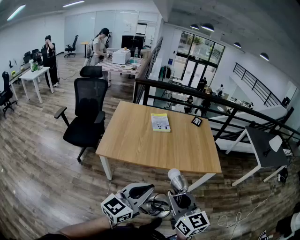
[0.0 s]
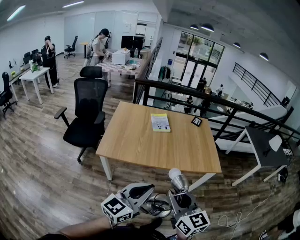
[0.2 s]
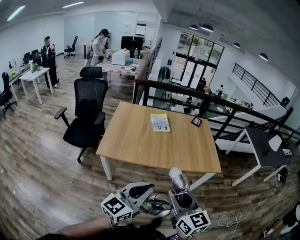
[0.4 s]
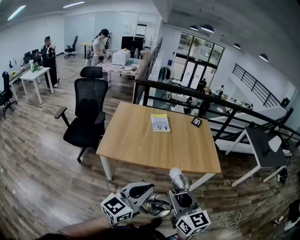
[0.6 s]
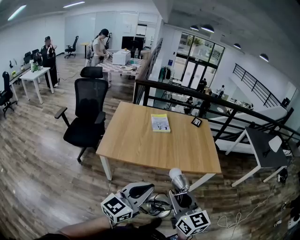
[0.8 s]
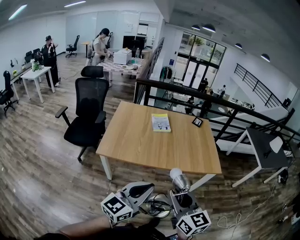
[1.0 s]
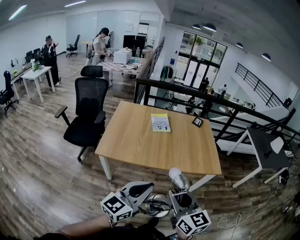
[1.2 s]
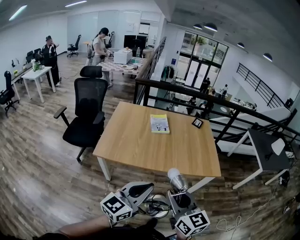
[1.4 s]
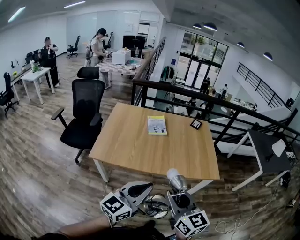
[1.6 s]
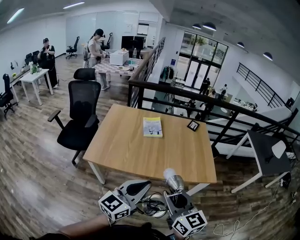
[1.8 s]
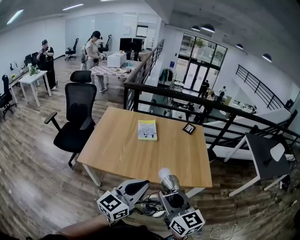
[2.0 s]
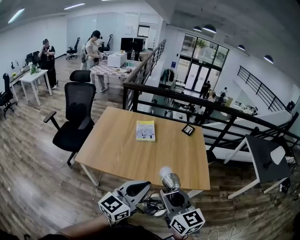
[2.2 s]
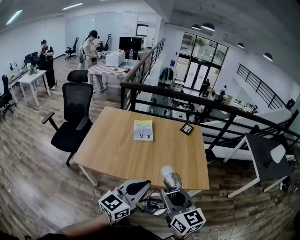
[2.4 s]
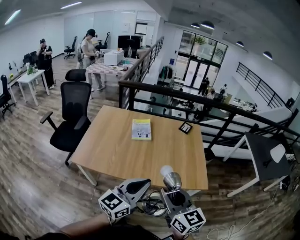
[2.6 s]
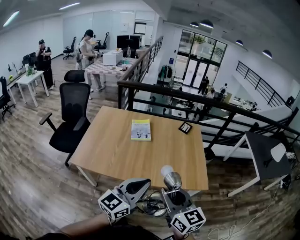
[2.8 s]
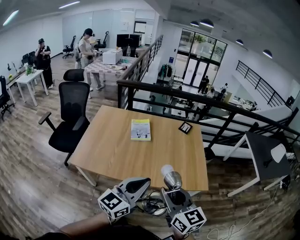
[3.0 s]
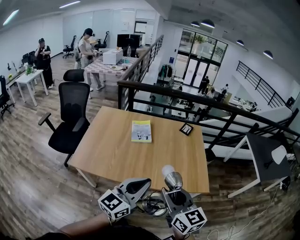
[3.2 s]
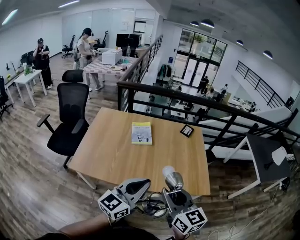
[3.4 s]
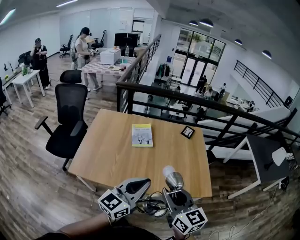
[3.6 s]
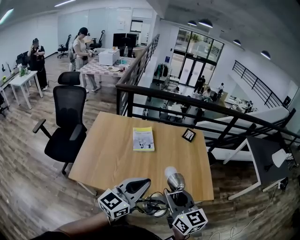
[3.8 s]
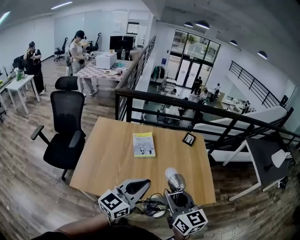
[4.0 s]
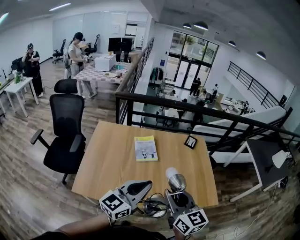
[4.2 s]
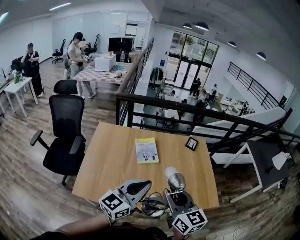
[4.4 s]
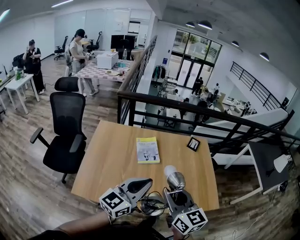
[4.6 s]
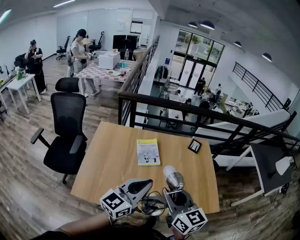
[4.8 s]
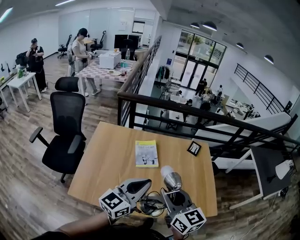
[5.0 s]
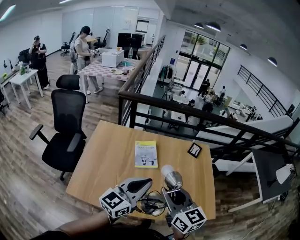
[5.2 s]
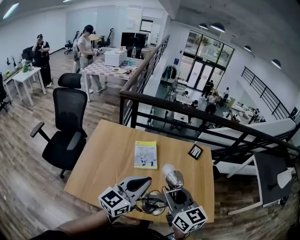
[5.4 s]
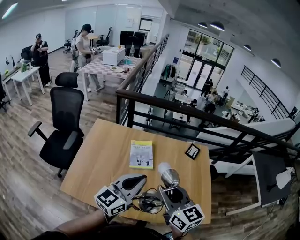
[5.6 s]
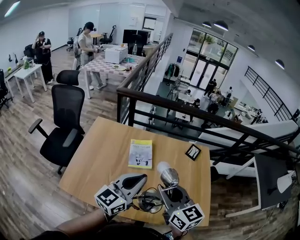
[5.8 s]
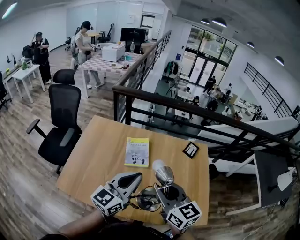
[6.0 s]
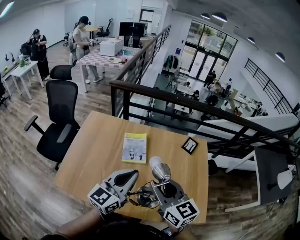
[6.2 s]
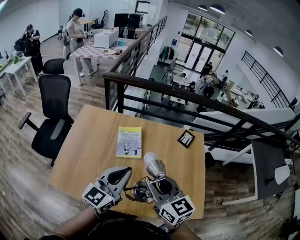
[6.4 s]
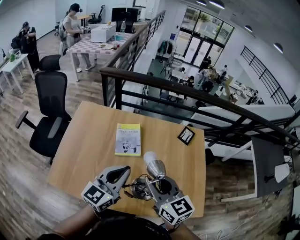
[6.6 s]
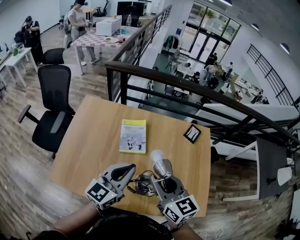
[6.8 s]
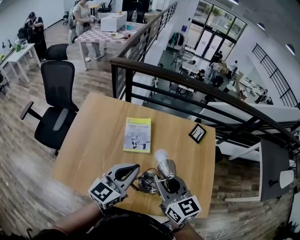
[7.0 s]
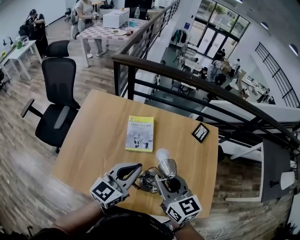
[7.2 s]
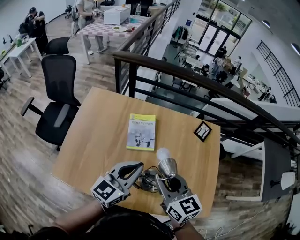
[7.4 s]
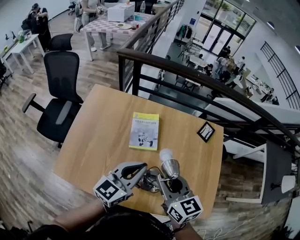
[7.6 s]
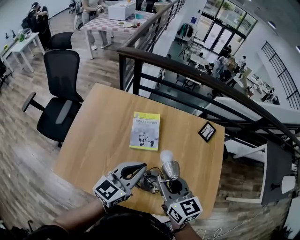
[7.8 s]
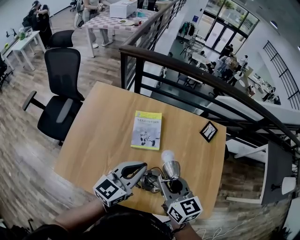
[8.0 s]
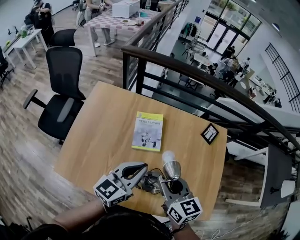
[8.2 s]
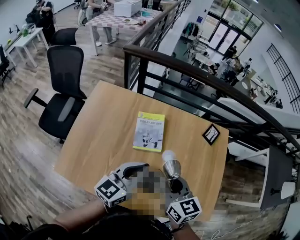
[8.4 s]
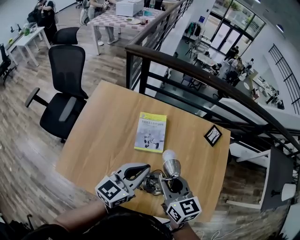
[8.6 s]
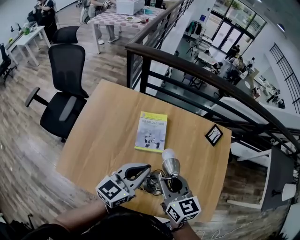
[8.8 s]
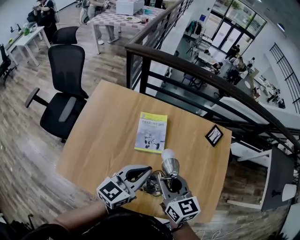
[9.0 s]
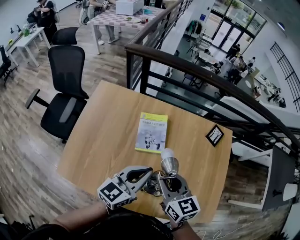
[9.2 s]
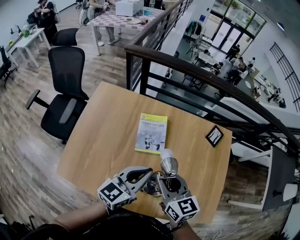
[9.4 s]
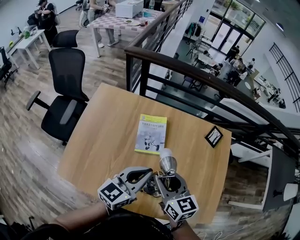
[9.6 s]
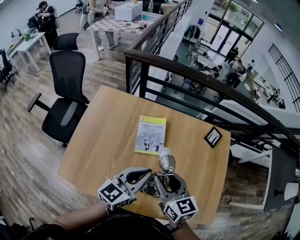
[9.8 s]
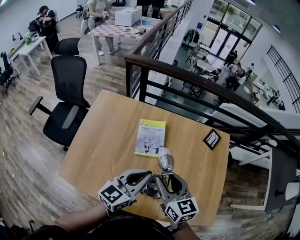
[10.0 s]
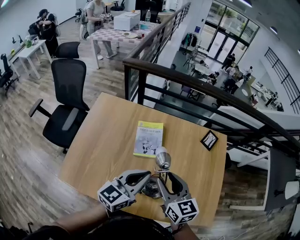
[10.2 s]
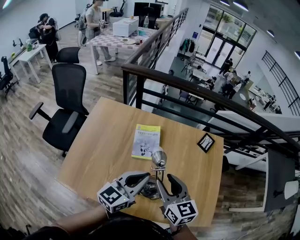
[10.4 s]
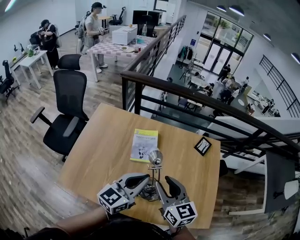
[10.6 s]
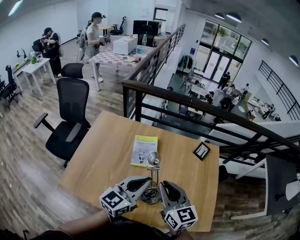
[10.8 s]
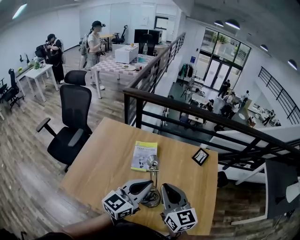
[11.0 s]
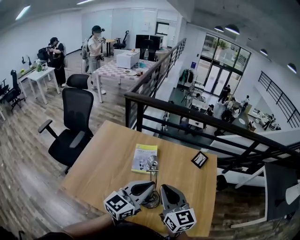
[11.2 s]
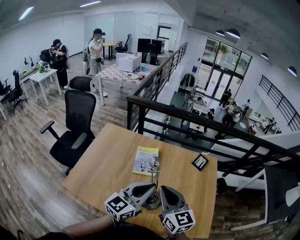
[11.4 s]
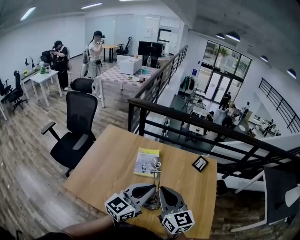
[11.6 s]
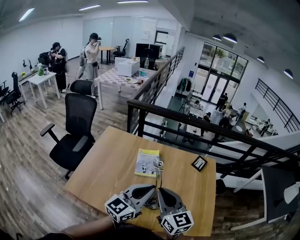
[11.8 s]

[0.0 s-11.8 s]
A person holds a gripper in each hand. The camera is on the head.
0.0 to 1.4 s: The right gripper changes place by roughly 5 cm, while the left gripper shifts by about 5 cm.
1.4 to 3.0 s: Both grippers travel together forward and to the right, some 25 cm.
3.0 to 4.4 s: Both grippers move forward and to the left, some 25 cm.
4.4 to 6.0 s: The two grippers go some 15 cm forward and to the right.
6.0 to 7.4 s: The grippers both shift forward and downward by some 15 cm.
7.4 to 8.8 s: The right gripper moves about 5 cm.
8.8 to 10.4 s: The left gripper shifts by roughly 5 cm. Meanwhile the right gripper shifts by roughly 5 cm.
10.4 to 11.8 s: Both grippers travel together backward and upward, about 15 cm. The right gripper closes up.

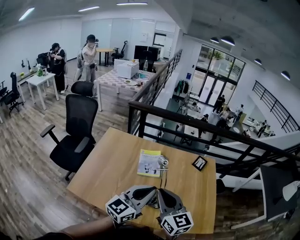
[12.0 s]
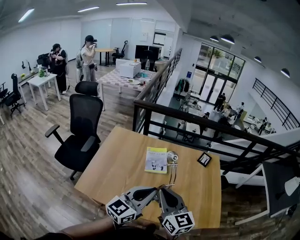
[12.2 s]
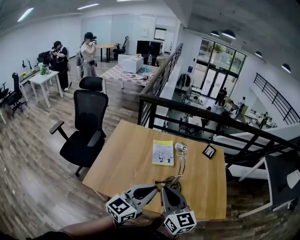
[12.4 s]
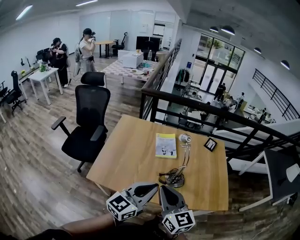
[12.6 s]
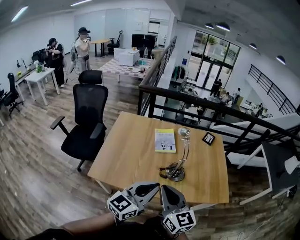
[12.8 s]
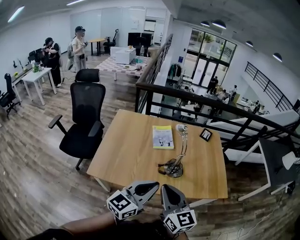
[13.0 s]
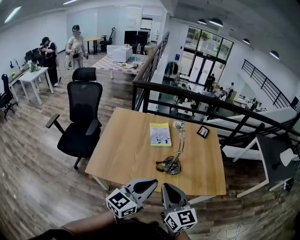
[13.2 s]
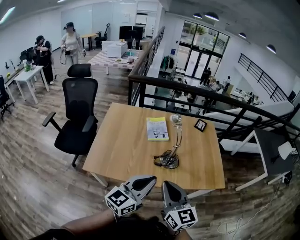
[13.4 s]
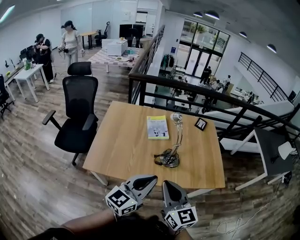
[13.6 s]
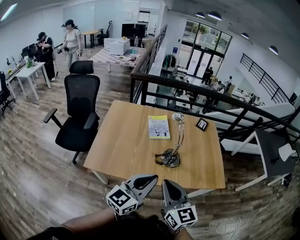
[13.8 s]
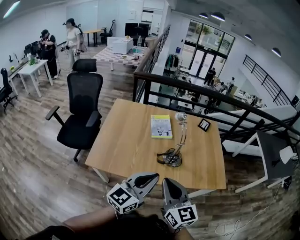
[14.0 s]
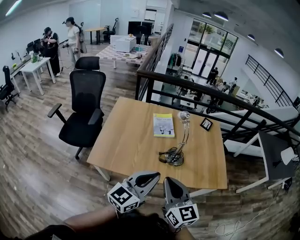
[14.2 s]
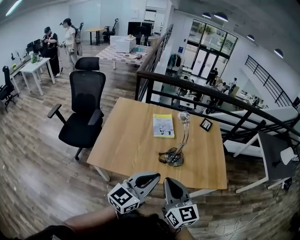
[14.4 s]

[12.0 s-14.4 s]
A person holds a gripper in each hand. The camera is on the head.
12.0 to 13.2 s: The right gripper is displaced backward by some 20 cm. The left gripper shifts approximately 25 cm backward and to the left.
13.2 to 14.4 s: The grippers make only small movements.

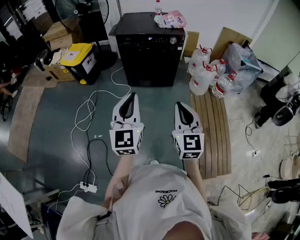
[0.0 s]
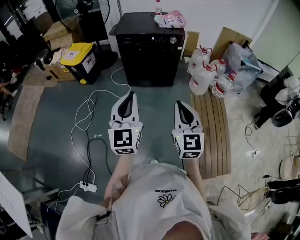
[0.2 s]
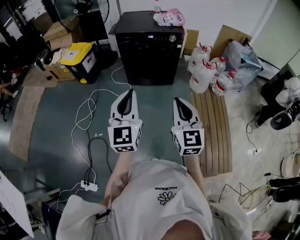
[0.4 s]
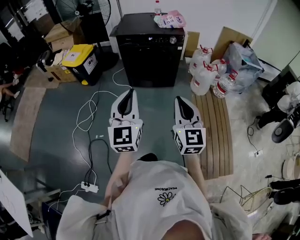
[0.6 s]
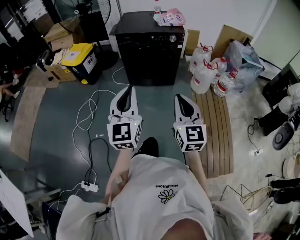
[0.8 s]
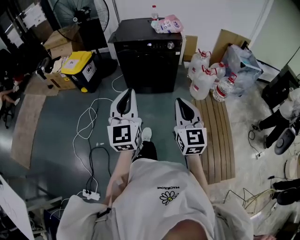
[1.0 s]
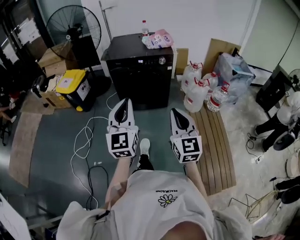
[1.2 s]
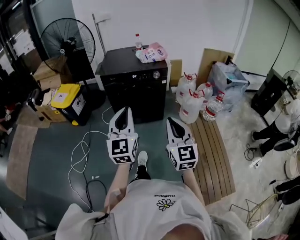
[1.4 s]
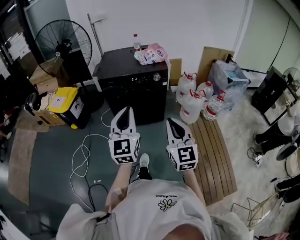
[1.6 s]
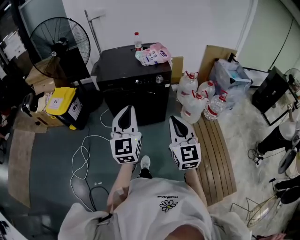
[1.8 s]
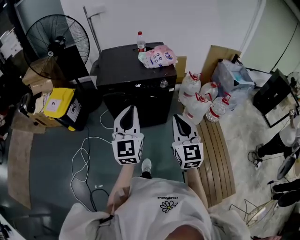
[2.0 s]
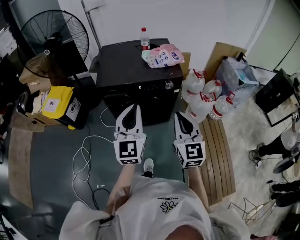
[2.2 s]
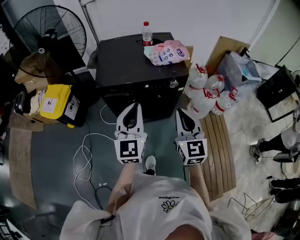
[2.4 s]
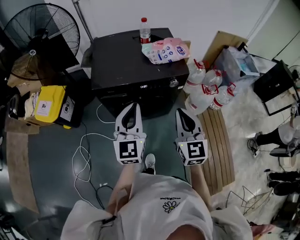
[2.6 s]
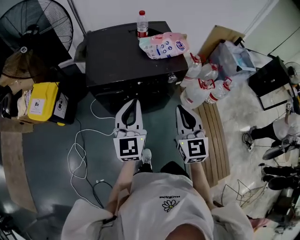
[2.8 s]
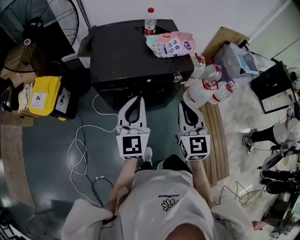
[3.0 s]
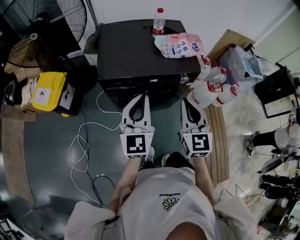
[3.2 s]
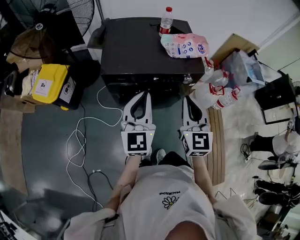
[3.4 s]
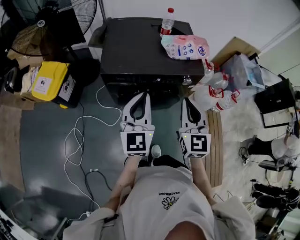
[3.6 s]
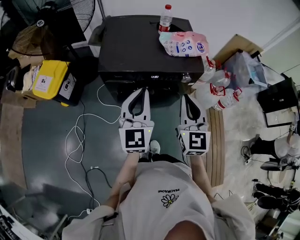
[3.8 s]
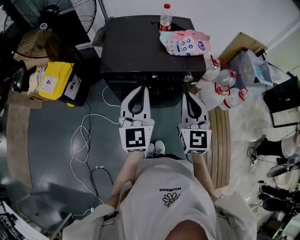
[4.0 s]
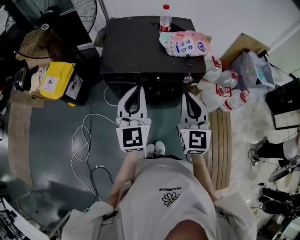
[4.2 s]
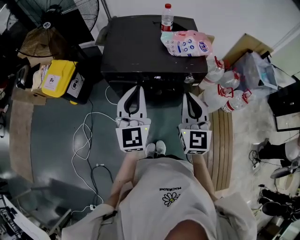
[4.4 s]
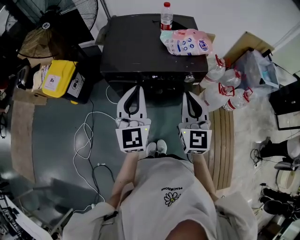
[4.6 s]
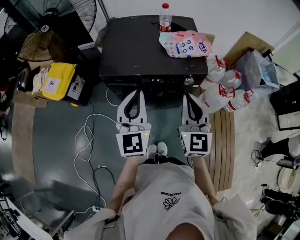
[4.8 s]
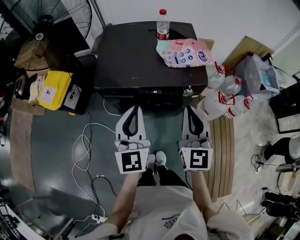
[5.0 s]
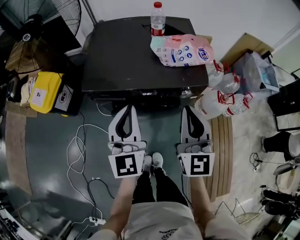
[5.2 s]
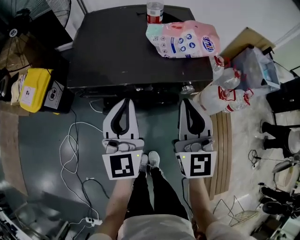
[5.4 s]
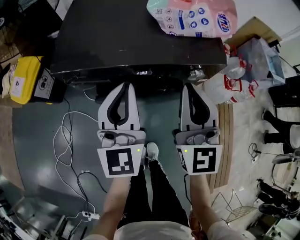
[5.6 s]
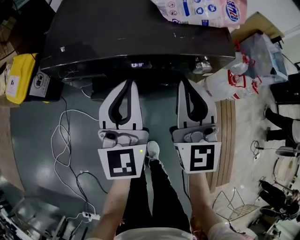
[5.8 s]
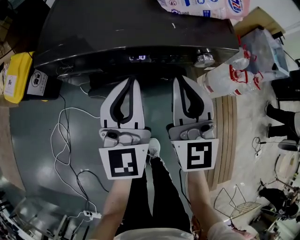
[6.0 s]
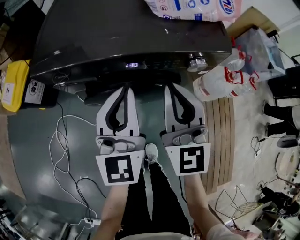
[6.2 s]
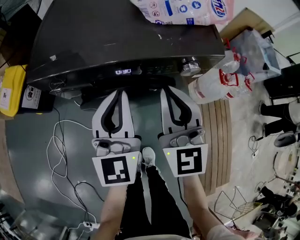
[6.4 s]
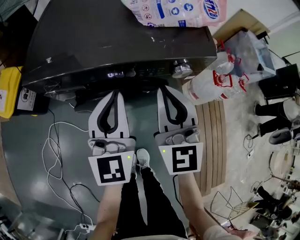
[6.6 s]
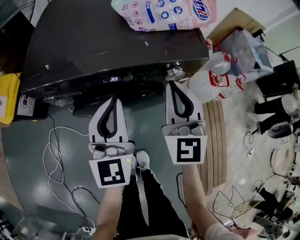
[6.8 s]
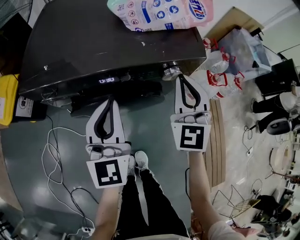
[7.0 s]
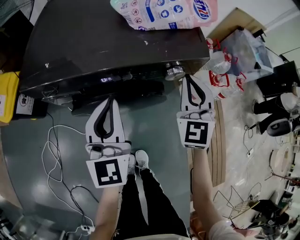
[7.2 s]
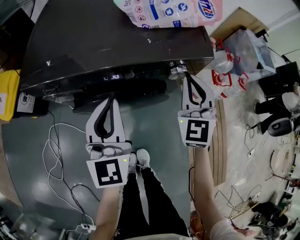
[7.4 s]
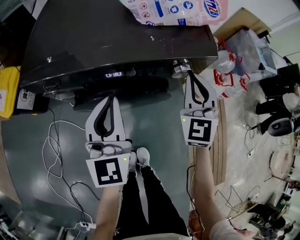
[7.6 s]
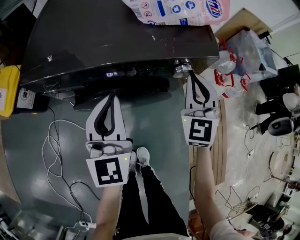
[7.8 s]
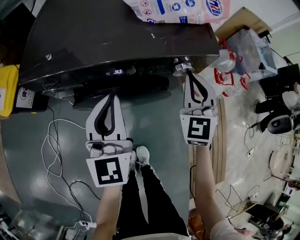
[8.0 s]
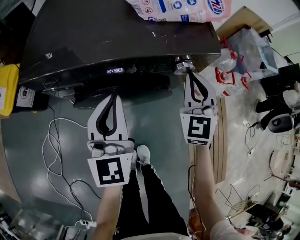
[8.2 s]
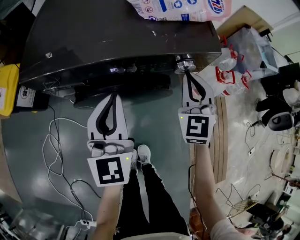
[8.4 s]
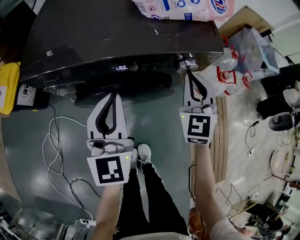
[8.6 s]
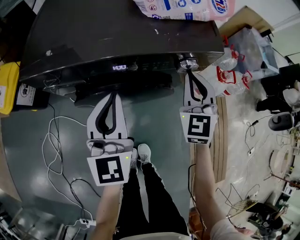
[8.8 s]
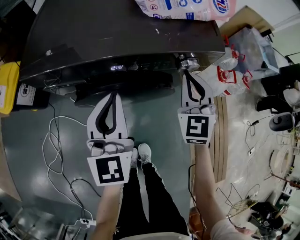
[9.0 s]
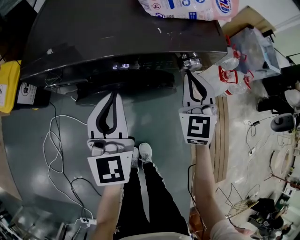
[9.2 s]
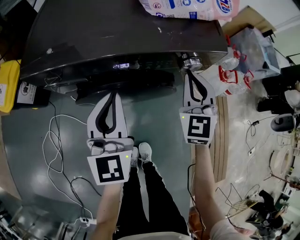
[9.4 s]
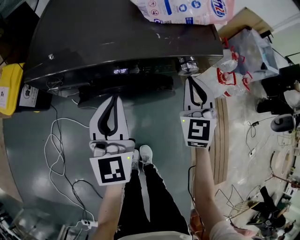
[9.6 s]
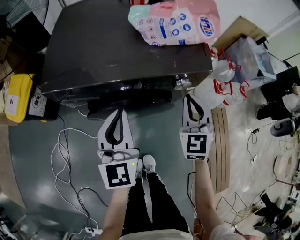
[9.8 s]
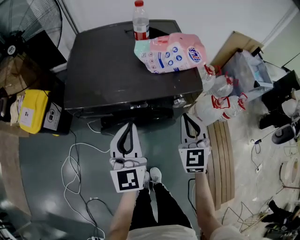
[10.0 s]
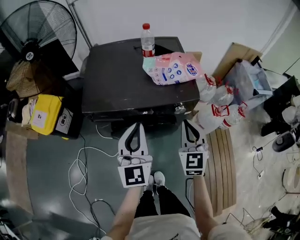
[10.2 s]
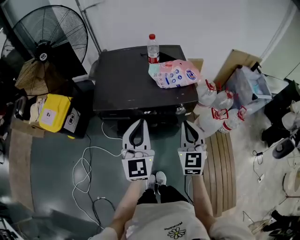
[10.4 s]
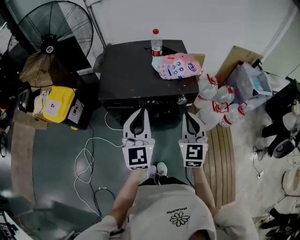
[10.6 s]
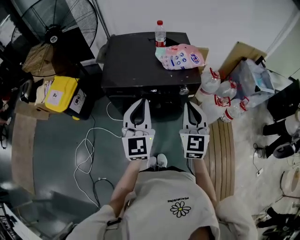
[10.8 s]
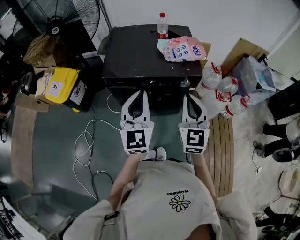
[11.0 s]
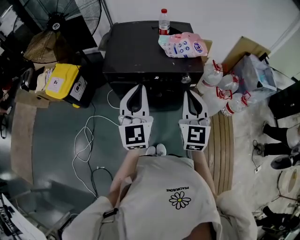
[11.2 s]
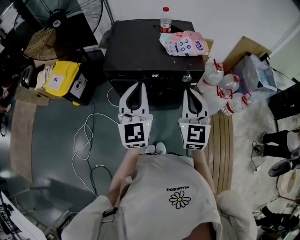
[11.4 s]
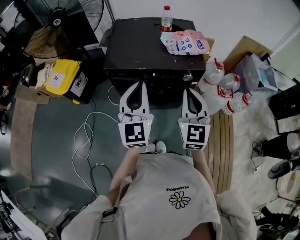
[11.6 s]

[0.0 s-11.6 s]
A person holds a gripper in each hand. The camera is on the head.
0.0 to 1.4 s: Both grippers travel together forward, about 10 cm.
1.4 to 2.8 s: Both grippers travel together forward, roughly 40 cm.
2.8 to 4.4 s: The right gripper travels forward by roughly 5 cm.
4.4 to 5.8 s: The two grippers go approximately 20 cm downward and forward.
5.8 to 7.2 s: The right gripper shifts roughly 15 cm to the right, downward and forward, and rotates about 20 degrees.
7.2 to 8.8 s: The grippers make only small movements.
8.8 to 10.2 s: The left gripper goes roughly 20 cm upward. The right gripper goes about 20 cm upward and backward.
10.2 to 11.6 s: The two grippers go approximately 15 cm upward and backward.
